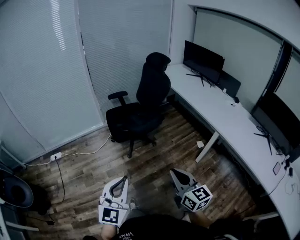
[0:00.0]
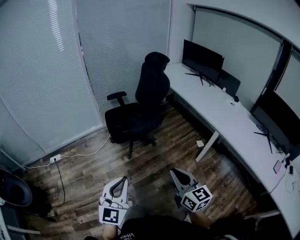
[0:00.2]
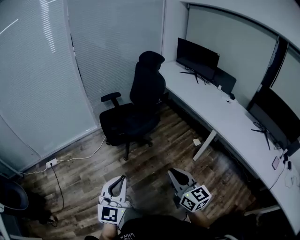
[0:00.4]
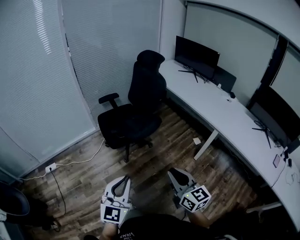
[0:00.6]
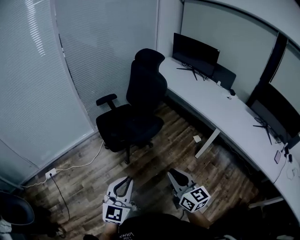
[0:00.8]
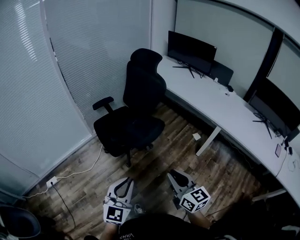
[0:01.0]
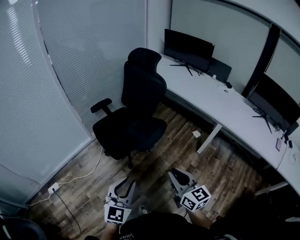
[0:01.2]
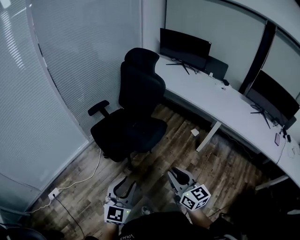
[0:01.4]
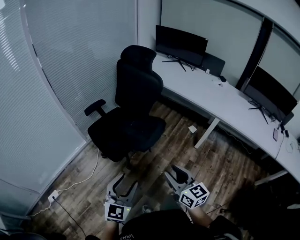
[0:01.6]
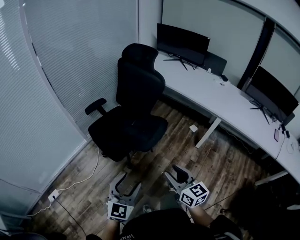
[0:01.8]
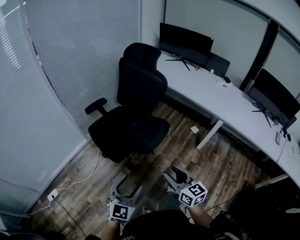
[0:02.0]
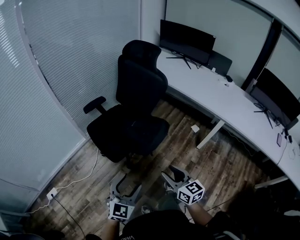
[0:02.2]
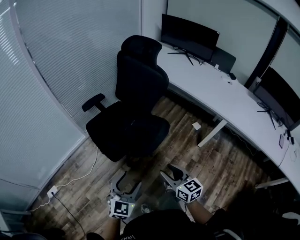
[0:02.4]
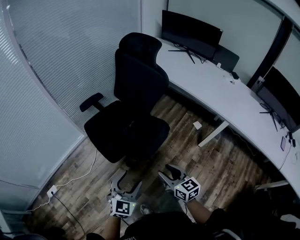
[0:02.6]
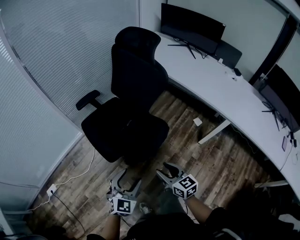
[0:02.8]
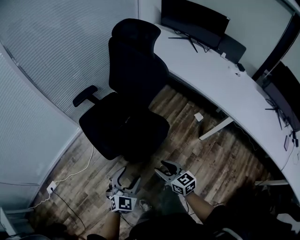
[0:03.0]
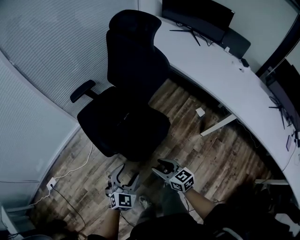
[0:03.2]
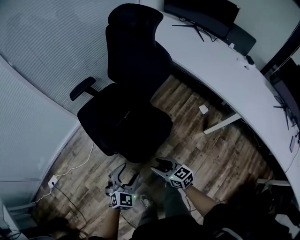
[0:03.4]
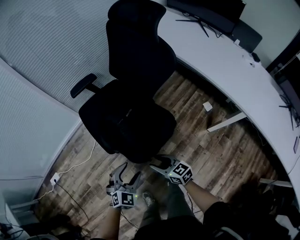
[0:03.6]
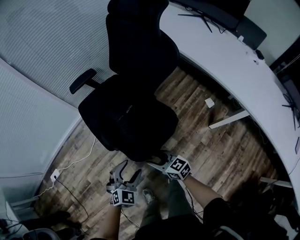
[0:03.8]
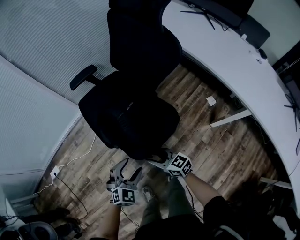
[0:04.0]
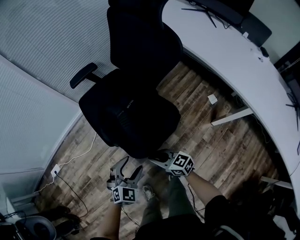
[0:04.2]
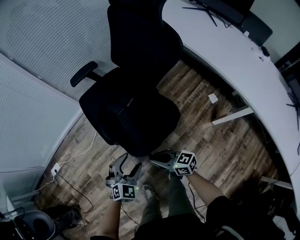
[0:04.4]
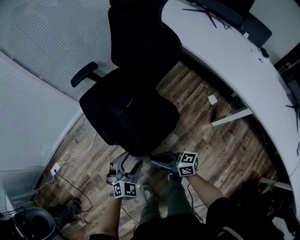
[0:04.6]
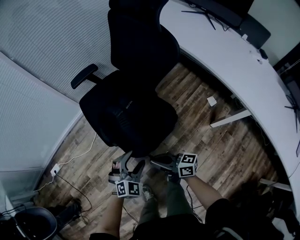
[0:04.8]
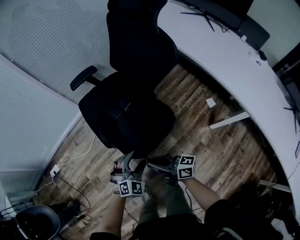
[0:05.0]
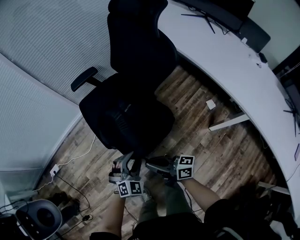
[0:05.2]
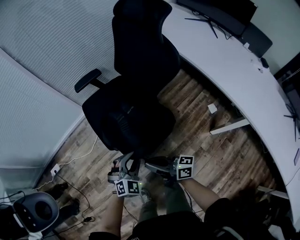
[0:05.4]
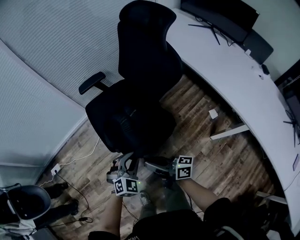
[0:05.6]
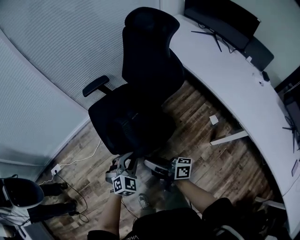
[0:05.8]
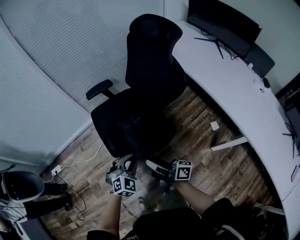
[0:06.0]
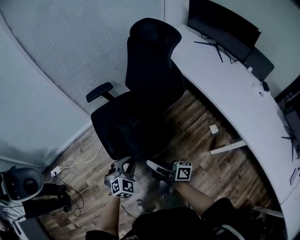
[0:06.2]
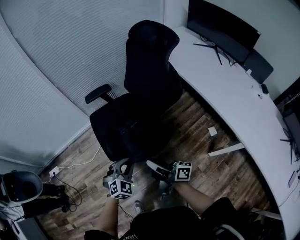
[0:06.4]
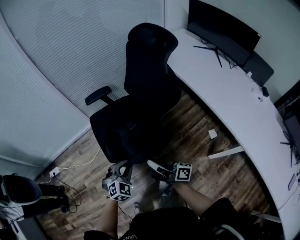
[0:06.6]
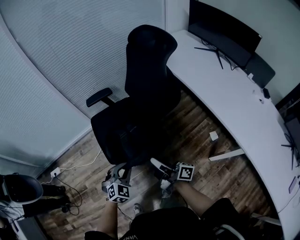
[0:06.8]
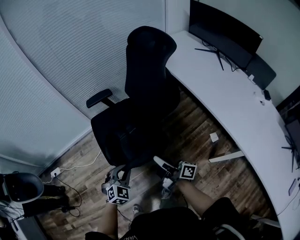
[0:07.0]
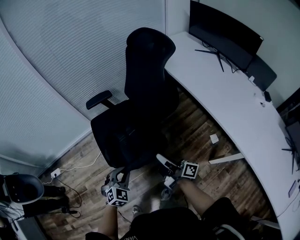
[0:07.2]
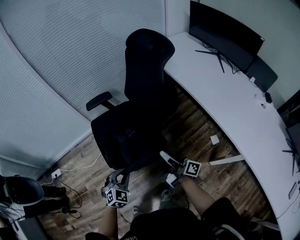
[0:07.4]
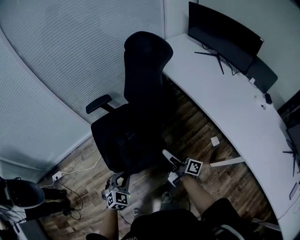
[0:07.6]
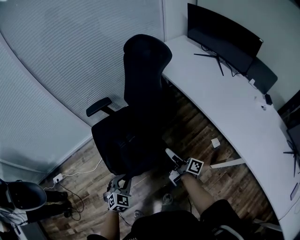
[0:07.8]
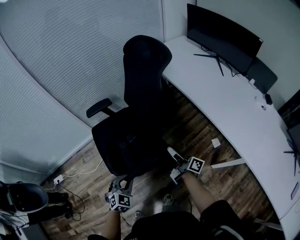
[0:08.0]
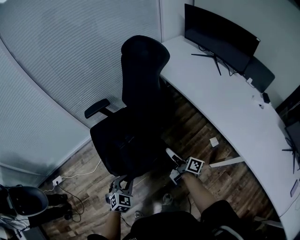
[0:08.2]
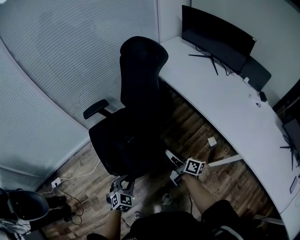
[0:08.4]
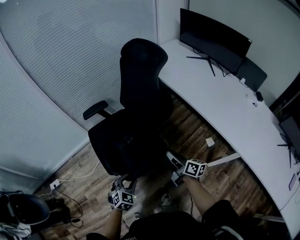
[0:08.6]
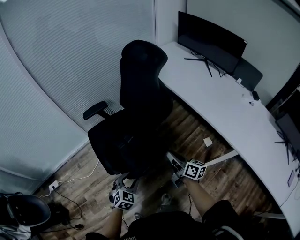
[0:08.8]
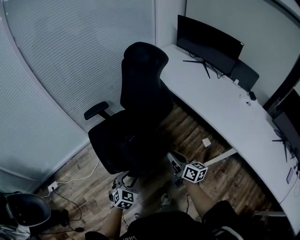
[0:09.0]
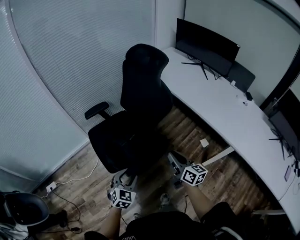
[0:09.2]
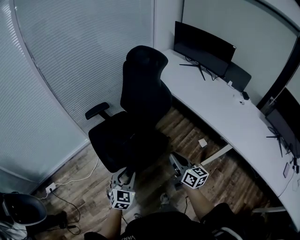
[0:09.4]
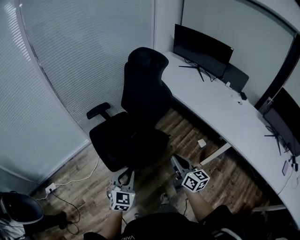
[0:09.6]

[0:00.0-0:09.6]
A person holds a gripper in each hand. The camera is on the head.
0:00.0 to 0:01.6: Both grippers travel together forward and to the left, roughly 30 cm. The right gripper opens its fingers. Meanwhile the left gripper swivels some 30 degrees, and opens.
0:01.6 to 0:03.2: The left gripper moves forward and downward, roughly 30 cm, and changes its angle by approximately 20 degrees, while the right gripper shifts about 30 cm downward and forward, and rotates about 30 degrees.
0:03.2 to 0:04.8: The right gripper moves some 10 cm downward and comes back, rotates about 40 degrees, and closes its fingers. The left gripper shifts some 10 cm downward and to the right.
0:04.8 to 0:06.4: The right gripper shifts some 15 cm upward, forward and to the right, and rotates approximately 30 degrees; the left gripper travels upward and forward by some 10 cm, and closes up.
0:06.4 to 0:08.0: The right gripper travels to the right and forward by roughly 20 cm, and swivels approximately 20 degrees.
0:08.0 to 0:09.6: The right gripper travels backward and upward by about 25 cm, and rolls counterclockwise, seen from behind, by some 50 degrees. The left gripper goes about 20 cm upward, backward and to the left, turns by some 20 degrees, and opens, then closes once more.

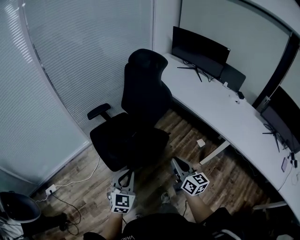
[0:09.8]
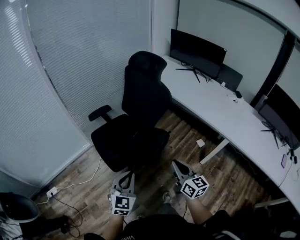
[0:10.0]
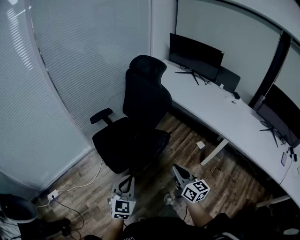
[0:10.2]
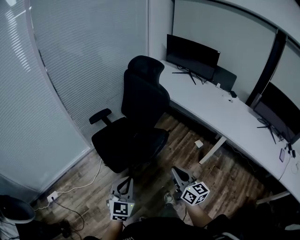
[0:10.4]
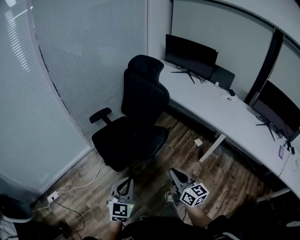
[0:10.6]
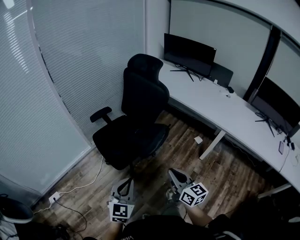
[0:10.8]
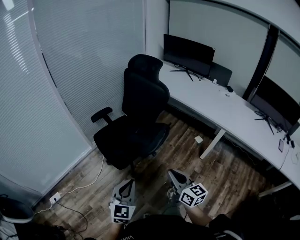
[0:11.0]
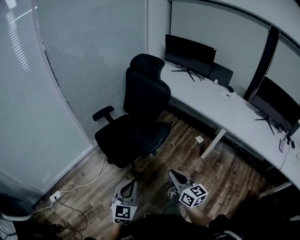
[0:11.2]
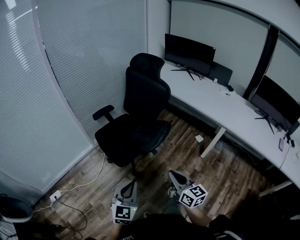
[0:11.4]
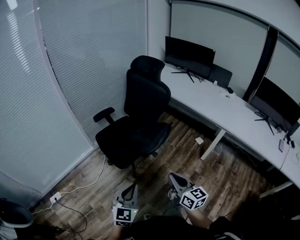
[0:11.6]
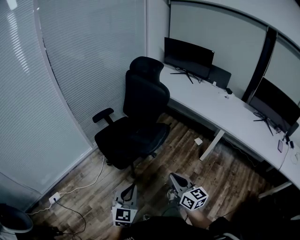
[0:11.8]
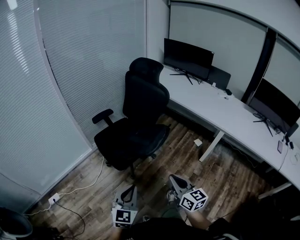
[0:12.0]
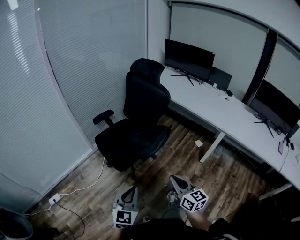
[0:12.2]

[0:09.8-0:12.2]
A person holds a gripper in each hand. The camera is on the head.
0:09.8 to 0:11.0: The two grippers go approximately 20 cm backward and to the left.
0:11.0 to 0:12.2: The grippers make only small movements.

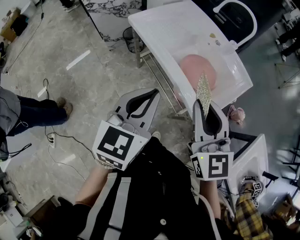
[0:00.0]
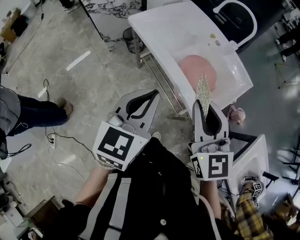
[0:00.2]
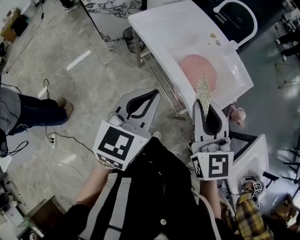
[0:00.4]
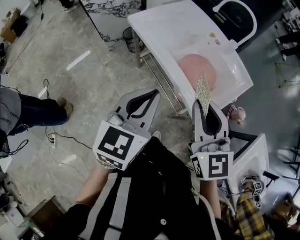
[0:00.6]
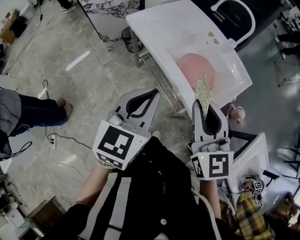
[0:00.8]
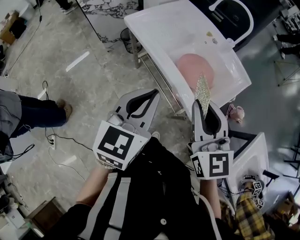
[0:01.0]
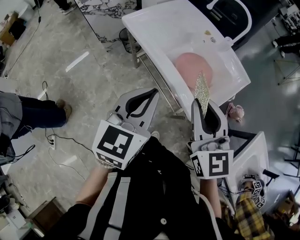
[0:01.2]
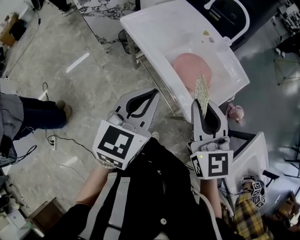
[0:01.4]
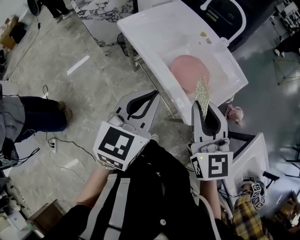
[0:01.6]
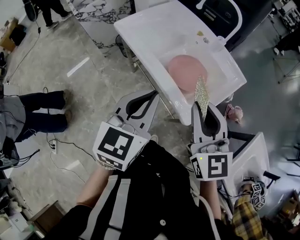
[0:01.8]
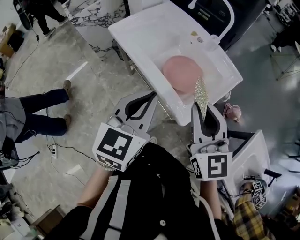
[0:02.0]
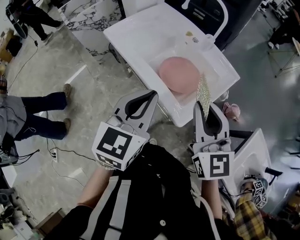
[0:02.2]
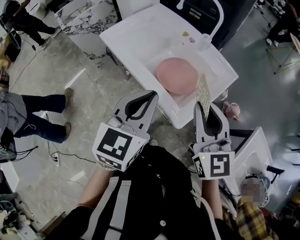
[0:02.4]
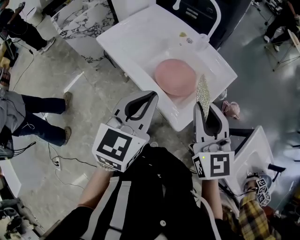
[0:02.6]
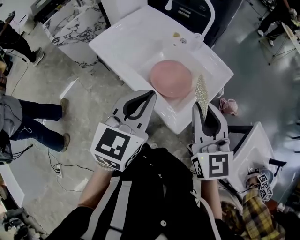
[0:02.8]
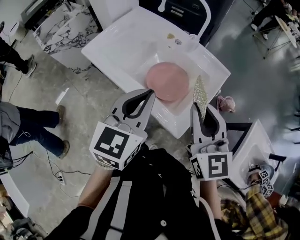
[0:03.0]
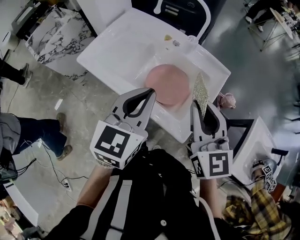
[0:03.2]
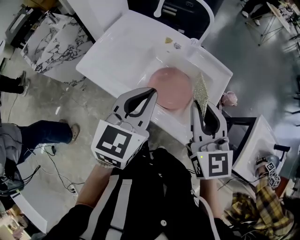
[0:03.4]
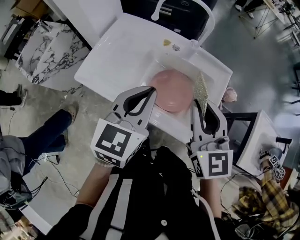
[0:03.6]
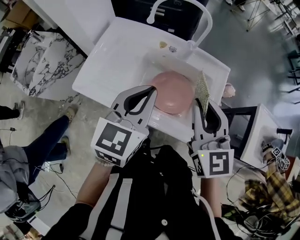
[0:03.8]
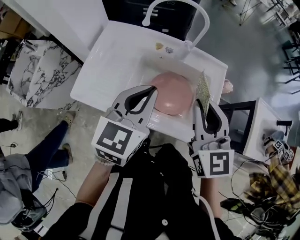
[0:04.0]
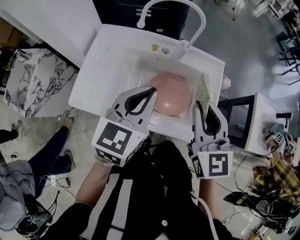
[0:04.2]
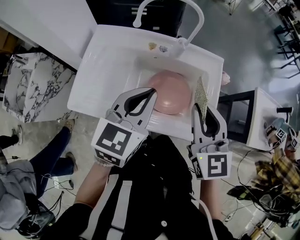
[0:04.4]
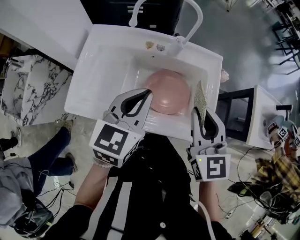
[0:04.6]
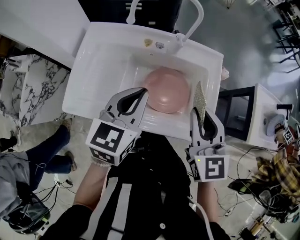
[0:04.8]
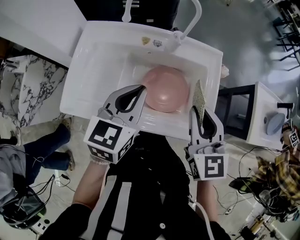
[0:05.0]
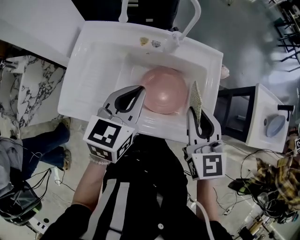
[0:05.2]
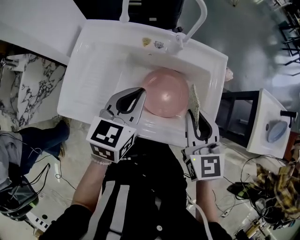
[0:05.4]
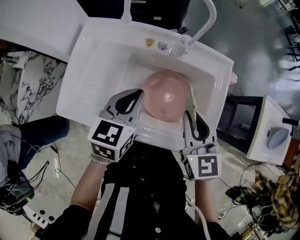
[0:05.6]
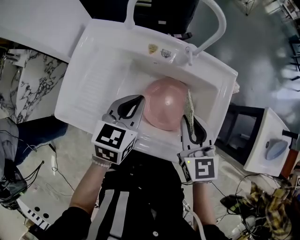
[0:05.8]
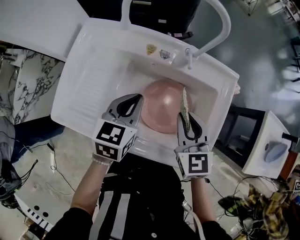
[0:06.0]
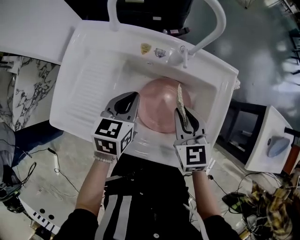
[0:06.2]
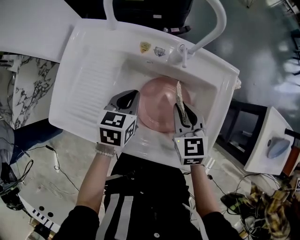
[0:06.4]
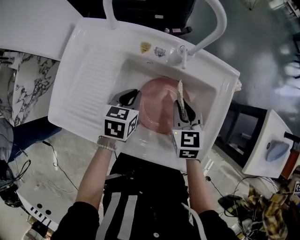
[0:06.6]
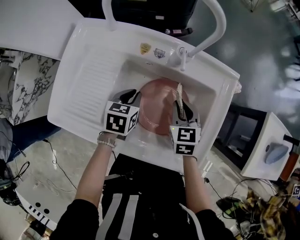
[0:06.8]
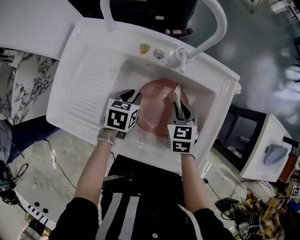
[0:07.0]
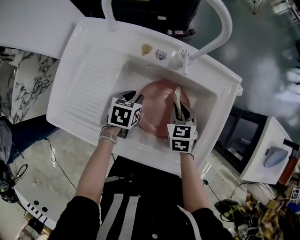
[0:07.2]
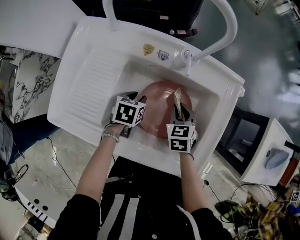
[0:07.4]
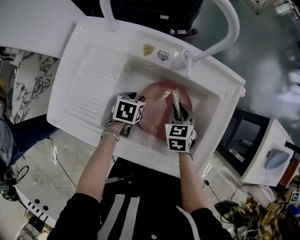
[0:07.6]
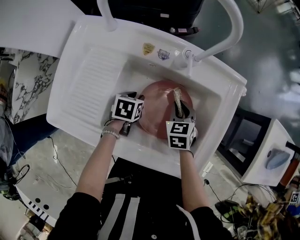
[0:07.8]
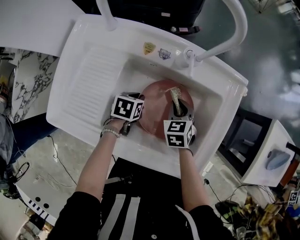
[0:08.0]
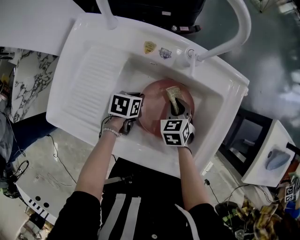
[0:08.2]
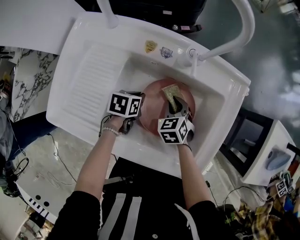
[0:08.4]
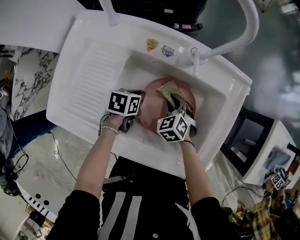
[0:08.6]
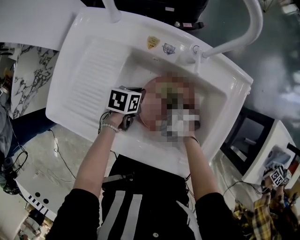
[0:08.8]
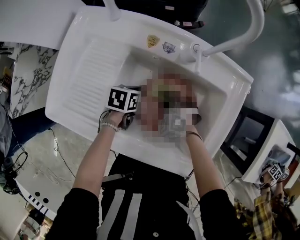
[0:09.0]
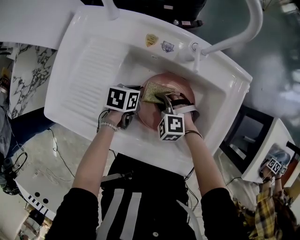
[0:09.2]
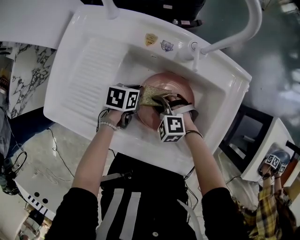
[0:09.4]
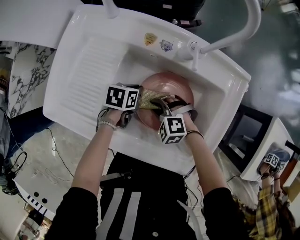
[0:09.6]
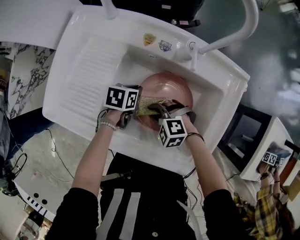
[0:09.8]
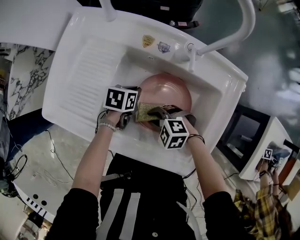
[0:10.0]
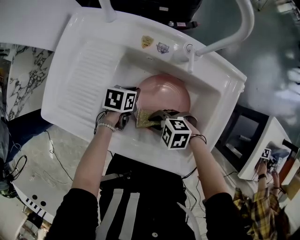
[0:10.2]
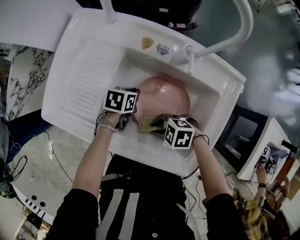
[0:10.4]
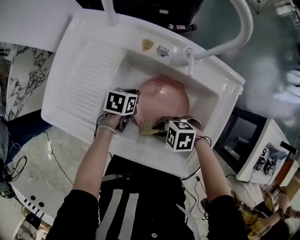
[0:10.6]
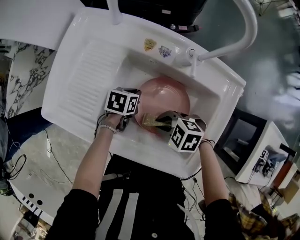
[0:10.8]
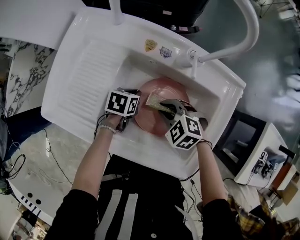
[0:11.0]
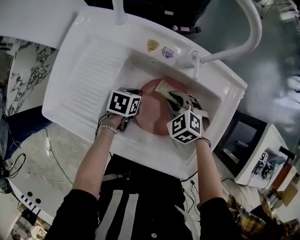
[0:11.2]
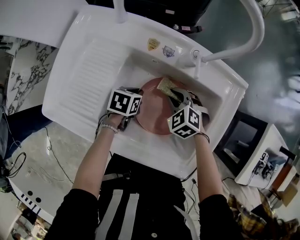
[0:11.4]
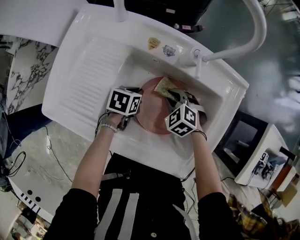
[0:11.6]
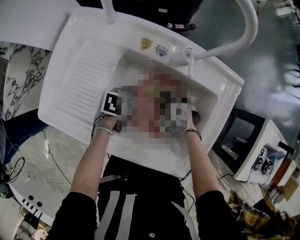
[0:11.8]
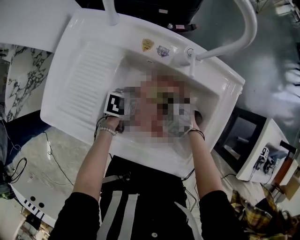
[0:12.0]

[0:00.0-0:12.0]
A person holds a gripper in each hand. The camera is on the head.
0:00.0 to 0:01.6: Both grippers travel together to the right, some 5 cm.
0:01.6 to 0:03.0: The right gripper is displaced forward and to the right by about 10 cm. Meanwhile the left gripper moves forward, approximately 10 cm.
0:03.0 to 0:04.4: The right gripper ends up roughly 10 cm from where it was, and swivels approximately 30 degrees. The left gripper changes place by approximately 15 cm, and turns by roughly 30 degrees.
0:04.4 to 0:06.0: Both grippers move downward and forward, approximately 20 cm. The left gripper turns by approximately 20 degrees.
0:06.0 to 0:07.6: The two grippers go roughly 20 cm downward. The right gripper turns by about 20 degrees, while the left gripper points its fingers approximately 30 degrees further downward, and opens its fingers.
0:07.6 to 0:09.0: The right gripper is displaced to the left by approximately 10 cm, and twists approximately 60 degrees counterclockwise, seen from behind. The left gripper closes.
0:09.0 to 0:10.4: The right gripper ends up roughly 15 cm from where it was, and changes its angle by about 50 degrees.
0:10.4 to 0:12.0: The right gripper ends up about 15 cm from where it was, and turns by some 40 degrees.
